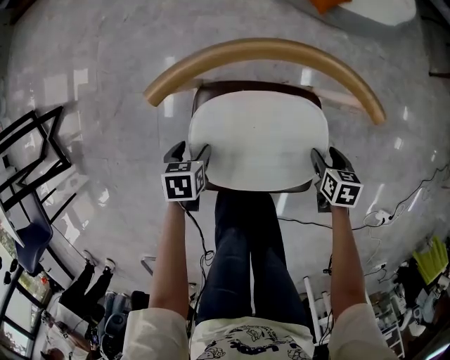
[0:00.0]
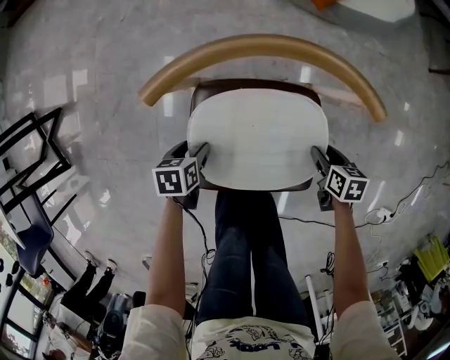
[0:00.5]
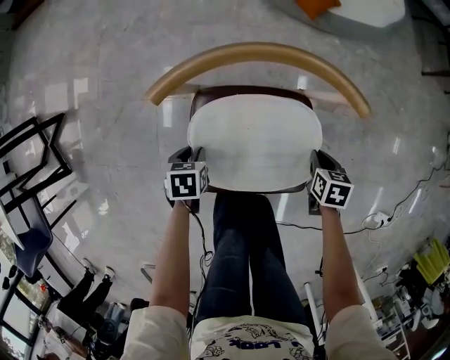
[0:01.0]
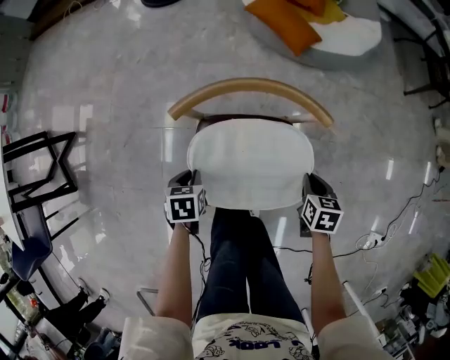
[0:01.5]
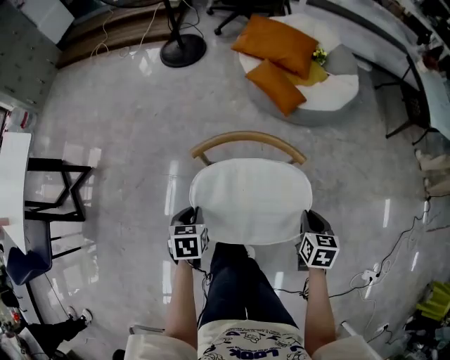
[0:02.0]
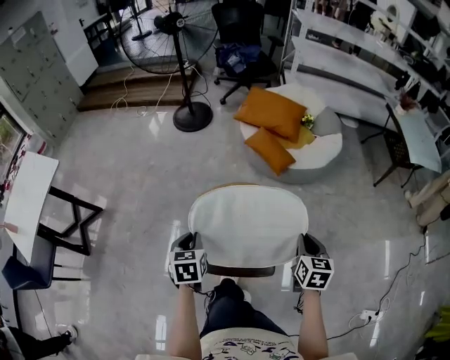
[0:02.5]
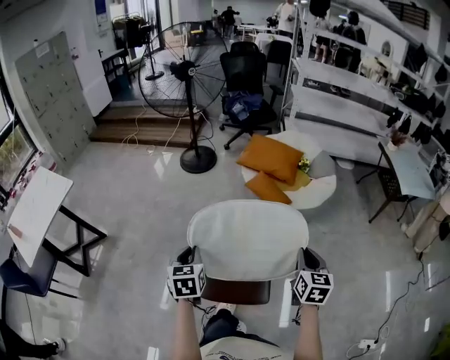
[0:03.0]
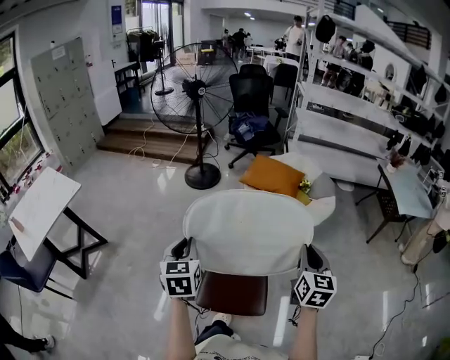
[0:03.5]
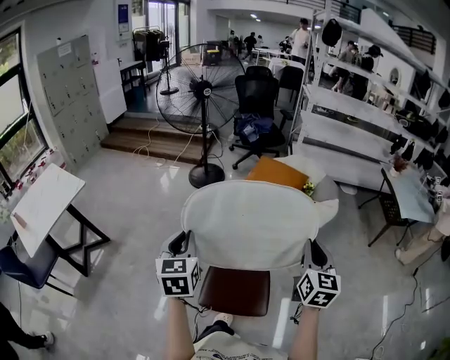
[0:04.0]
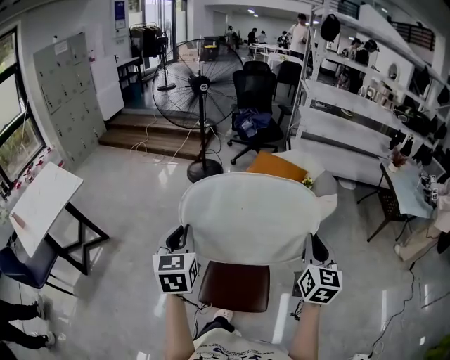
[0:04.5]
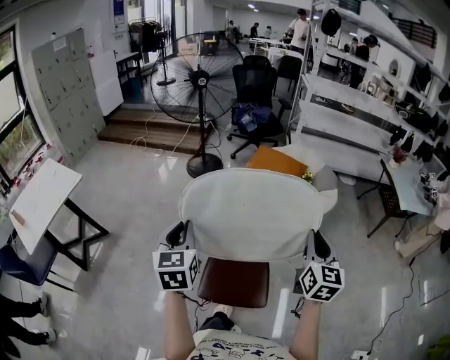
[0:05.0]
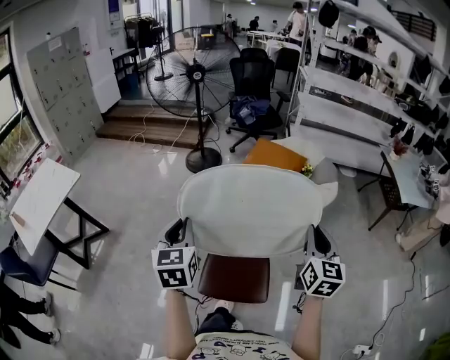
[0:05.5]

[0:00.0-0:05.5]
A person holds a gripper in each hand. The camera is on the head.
0:00.0 to 0:02.0: The grippers both shift upward by about 35 cm. The right gripper changes its angle by roughly 20 degrees, and closes up. The left gripper closes up.
0:02.0 to 0:03.5: The grippers both shift upward by roughly 40 cm. The right gripper angles its fingers upward, by roughly 40 degrees. The left gripper points its fingers some 40 degrees further upward.
0:03.5 to 0:05.5: The grippers move only a little.

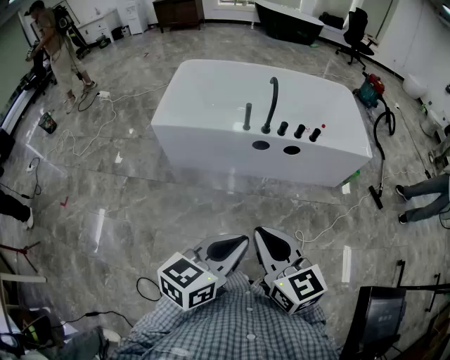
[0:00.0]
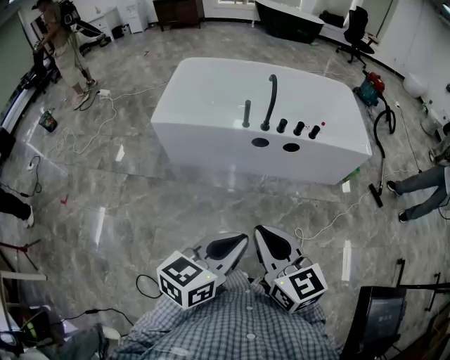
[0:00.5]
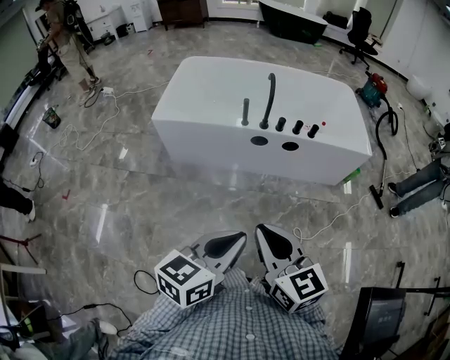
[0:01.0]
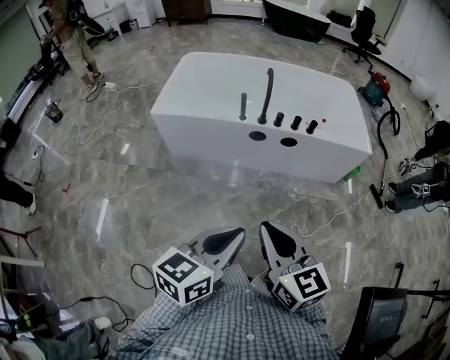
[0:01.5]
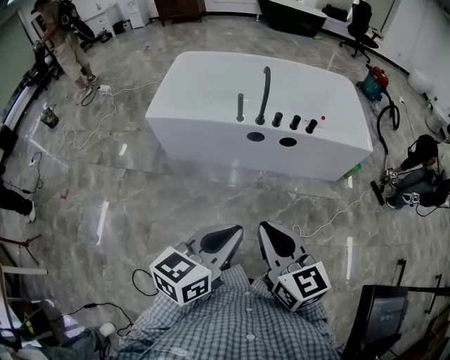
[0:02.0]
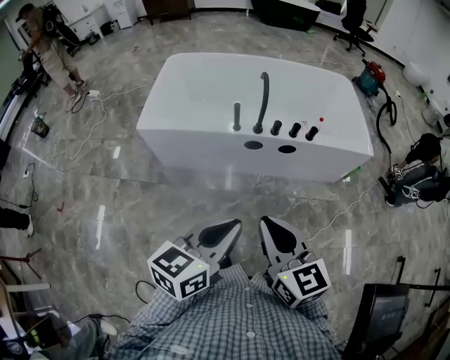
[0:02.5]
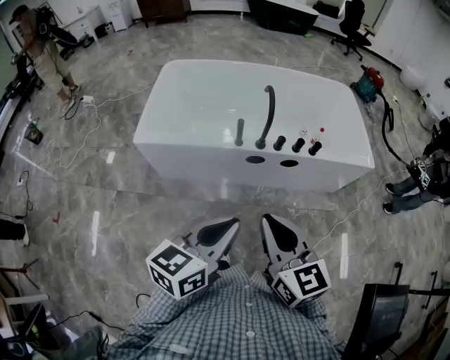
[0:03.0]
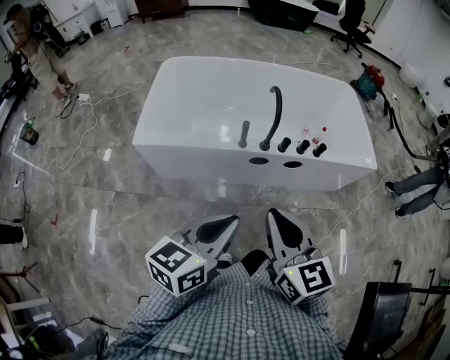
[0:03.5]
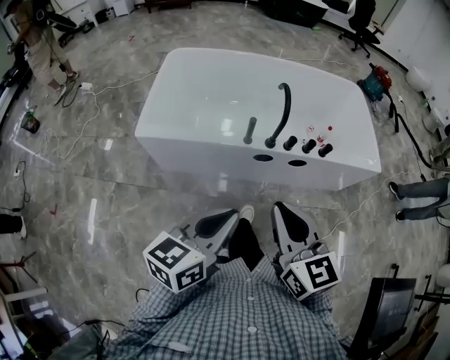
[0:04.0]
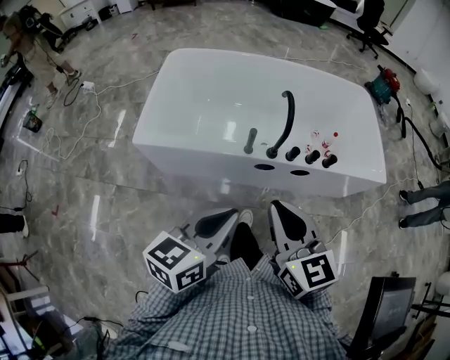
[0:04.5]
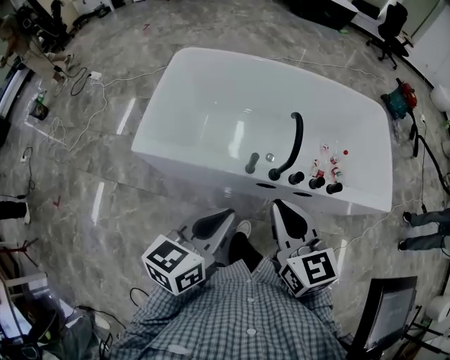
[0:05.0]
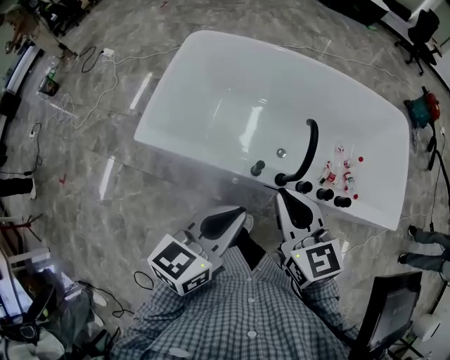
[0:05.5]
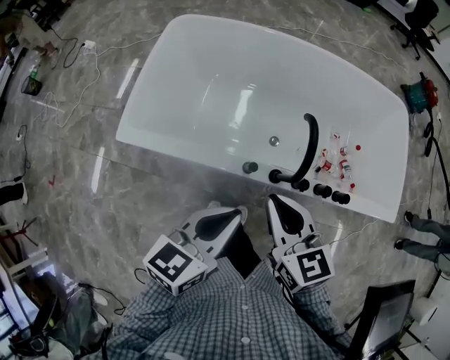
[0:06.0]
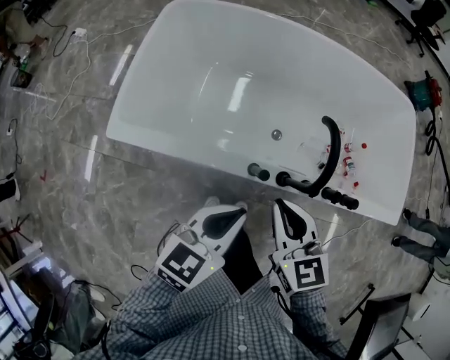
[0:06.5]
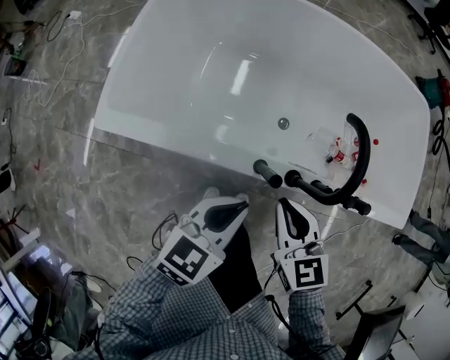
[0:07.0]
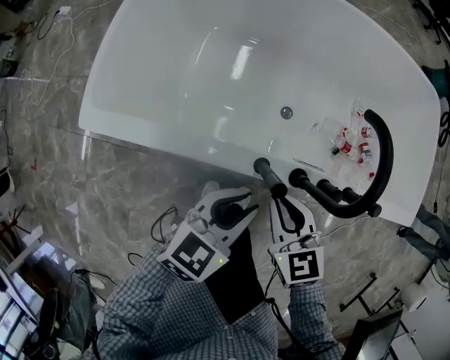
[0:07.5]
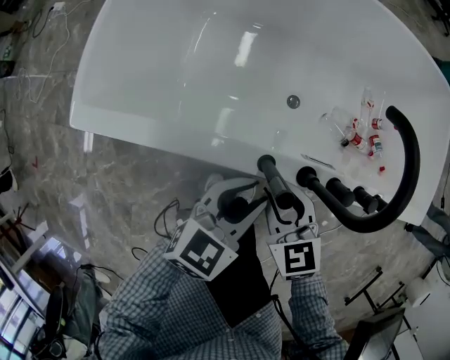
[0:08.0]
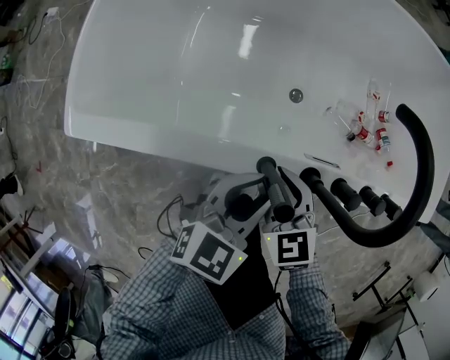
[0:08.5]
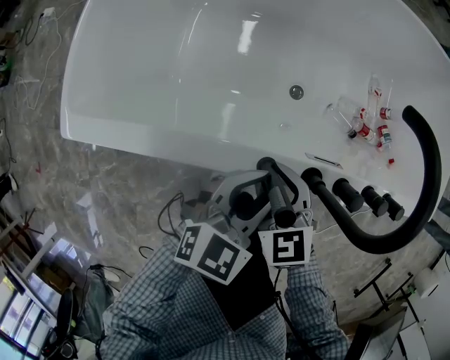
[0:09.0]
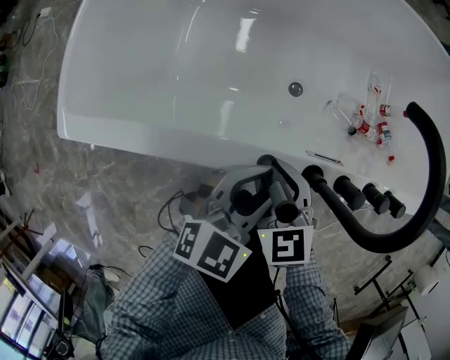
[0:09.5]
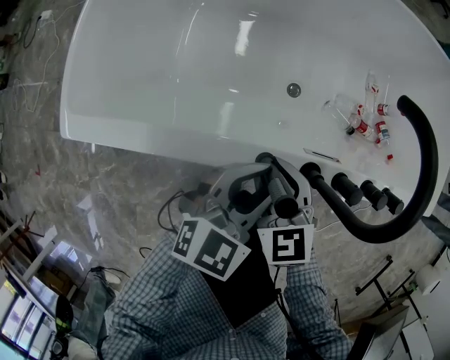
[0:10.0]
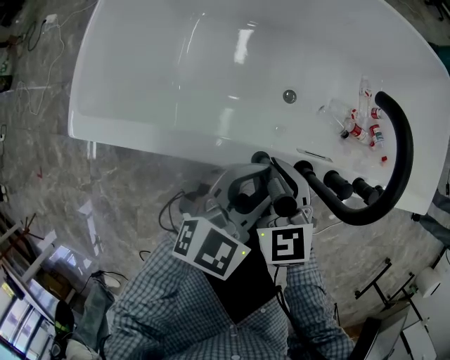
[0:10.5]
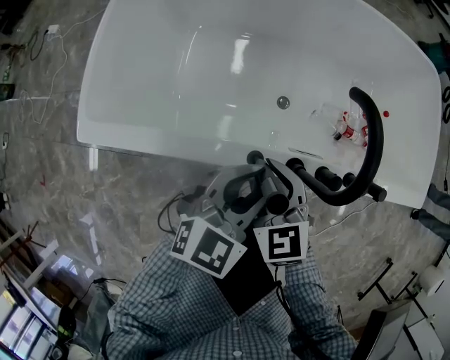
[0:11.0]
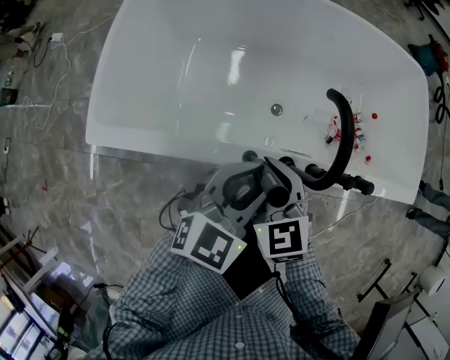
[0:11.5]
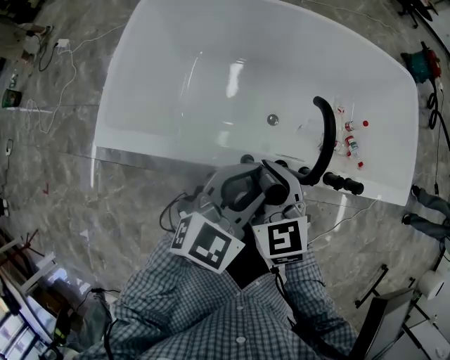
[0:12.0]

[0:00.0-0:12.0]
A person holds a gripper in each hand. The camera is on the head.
0:00.0 to 0:02.0: The right gripper heads to the right, covering some 5 cm; the left gripper changes place by about 5 cm.
0:02.0 to 0:04.0: The two grippers go some 30 cm forward and to the left.
0:04.0 to 0:06.0: Both grippers travel together forward, about 35 cm.
0:06.0 to 0:08.0: The two grippers go about 30 cm downward. The left gripper changes its angle by approximately 20 degrees; the right gripper opens its fingers.
0:08.0 to 0:10.0: The right gripper moves some 5 cm.
0:10.0 to 0:12.0: Both grippers move upward, approximately 20 cm.

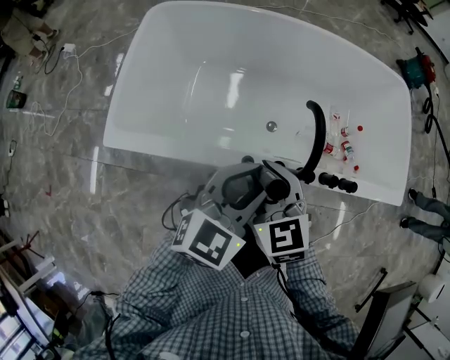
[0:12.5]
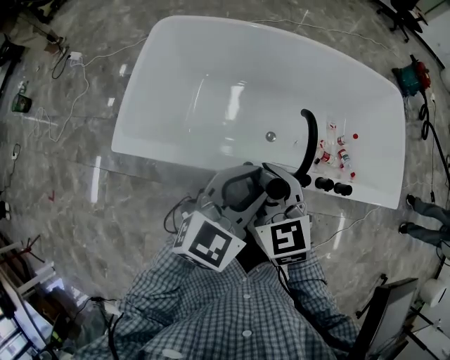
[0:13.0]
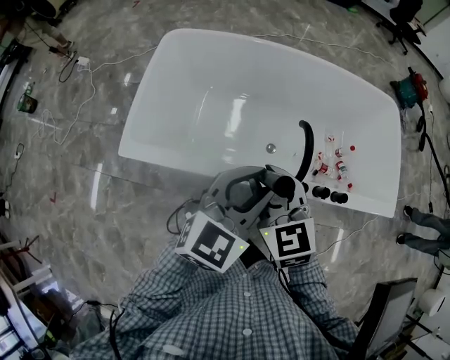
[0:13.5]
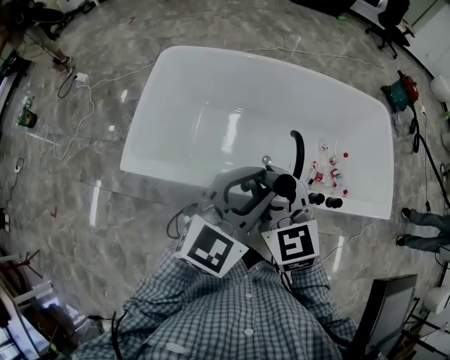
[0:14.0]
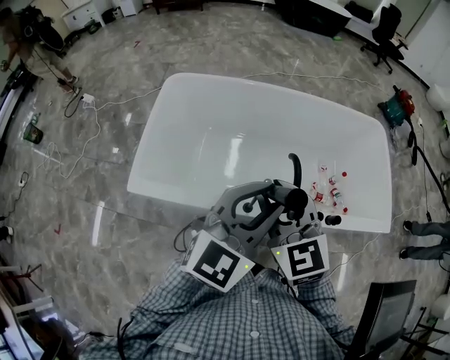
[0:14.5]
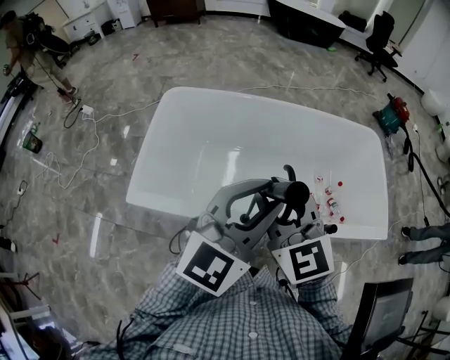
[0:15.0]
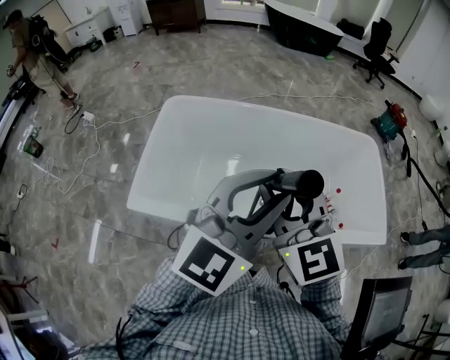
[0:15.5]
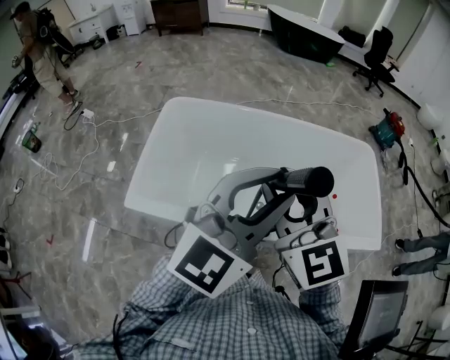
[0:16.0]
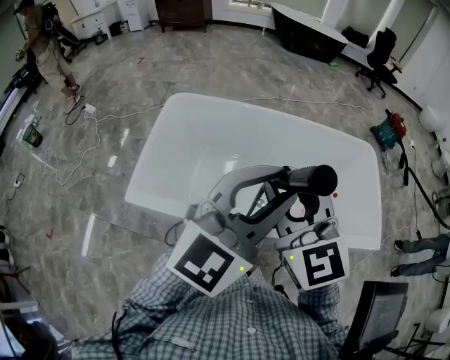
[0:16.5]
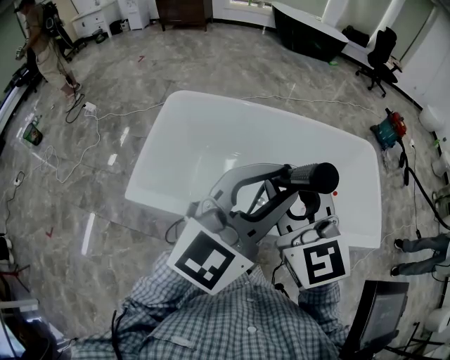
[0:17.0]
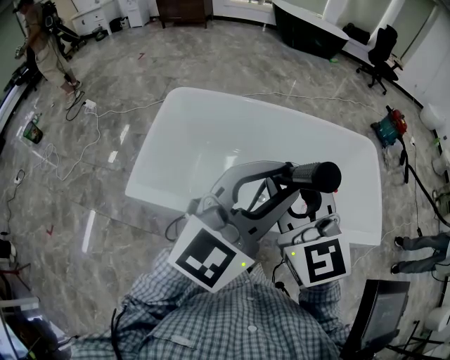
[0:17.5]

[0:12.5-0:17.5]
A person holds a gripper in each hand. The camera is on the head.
0:12.5 to 0:15.0: The grippers both shift upward by roughly 25 cm. The right gripper swivels roughly 30 degrees; the left gripper rotates approximately 20 degrees.
0:15.0 to 0:17.5: The two grippers go about 5 cm upward.

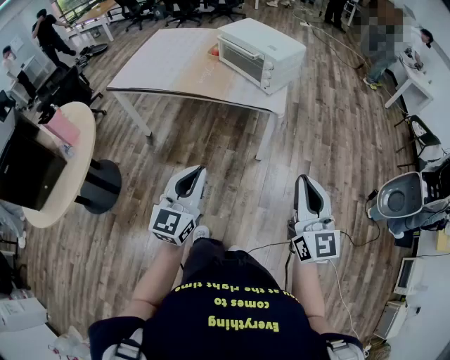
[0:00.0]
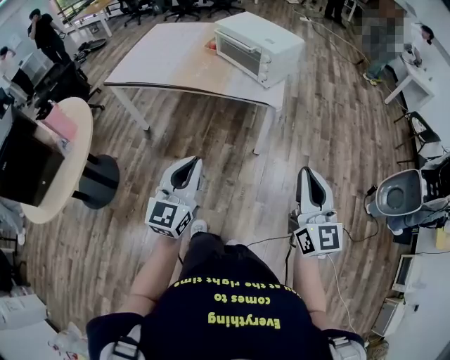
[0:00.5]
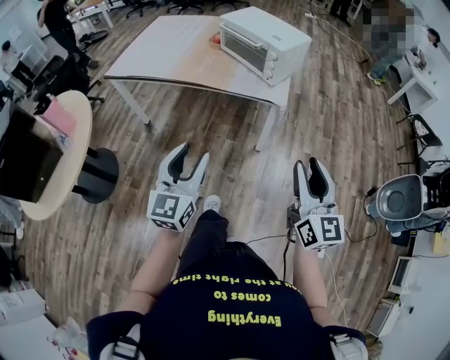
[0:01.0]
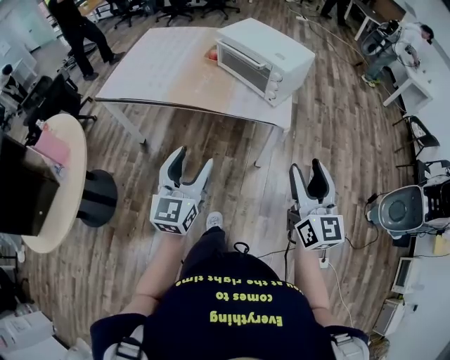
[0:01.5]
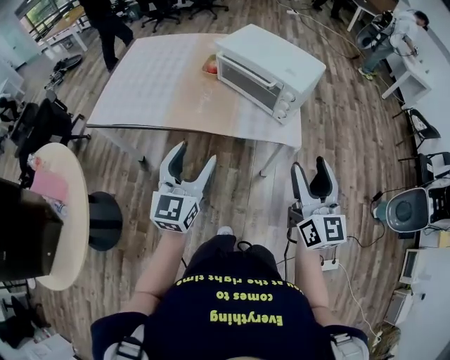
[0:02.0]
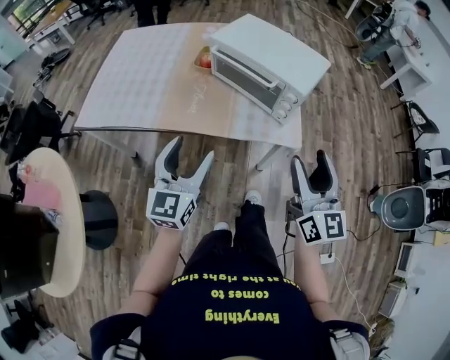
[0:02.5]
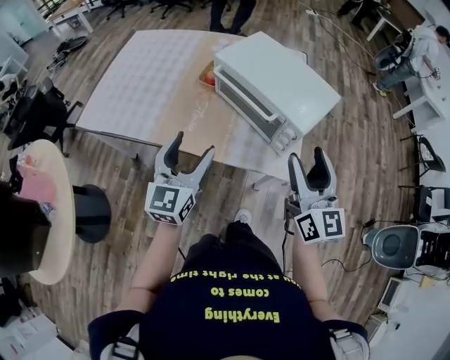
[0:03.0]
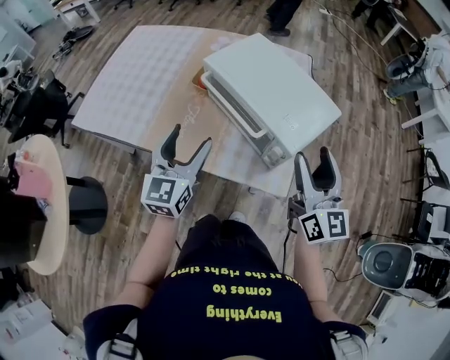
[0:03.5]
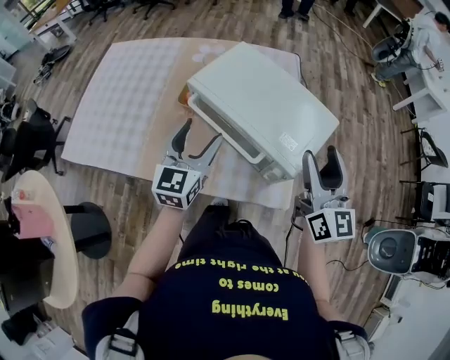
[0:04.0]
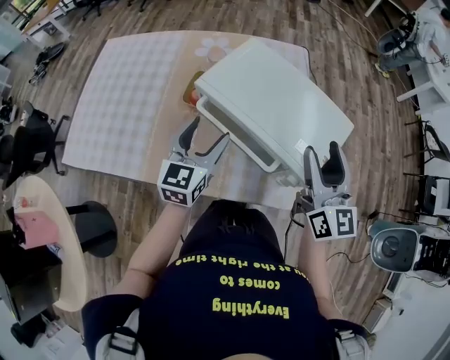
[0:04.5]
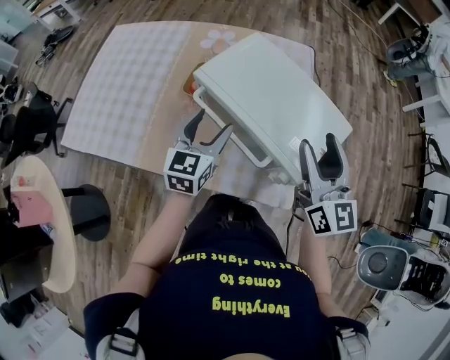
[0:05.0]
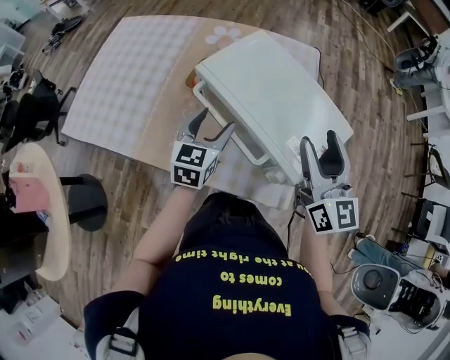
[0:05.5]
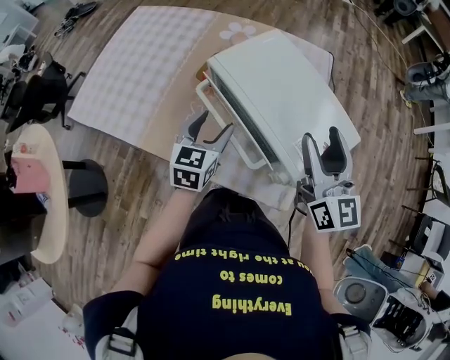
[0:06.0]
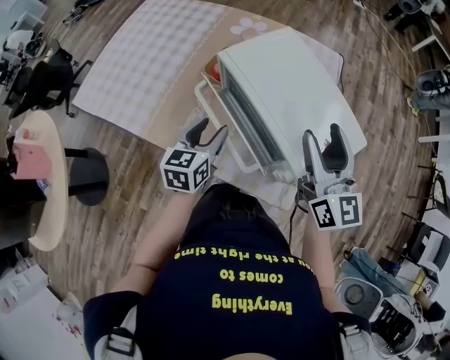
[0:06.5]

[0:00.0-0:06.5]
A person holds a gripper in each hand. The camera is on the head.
0:00.0 to 0:02.0: Both grippers travel together forward, about 30 cm. The right gripper opens up. The left gripper opens up.
0:02.0 to 0:04.5: The two grippers go roughly 40 cm forward.
0:04.5 to 0:06.5: The right gripper turns by about 20 degrees, while the left gripper goes some 5 cm downward, and turns by about 30 degrees.
